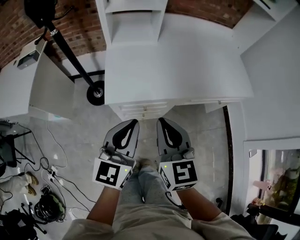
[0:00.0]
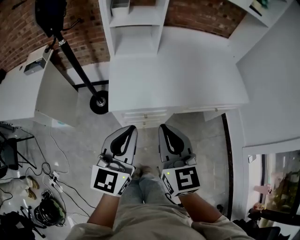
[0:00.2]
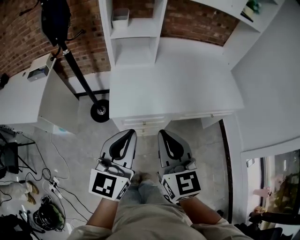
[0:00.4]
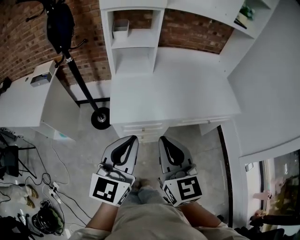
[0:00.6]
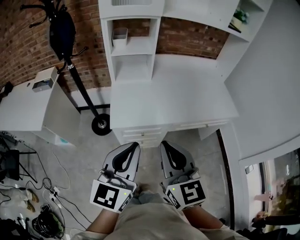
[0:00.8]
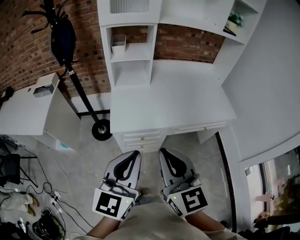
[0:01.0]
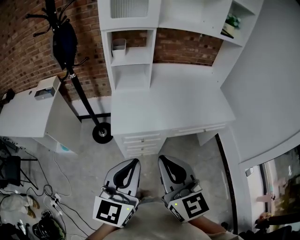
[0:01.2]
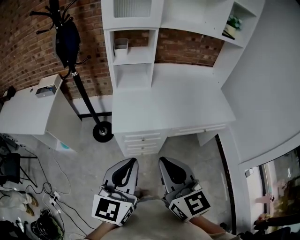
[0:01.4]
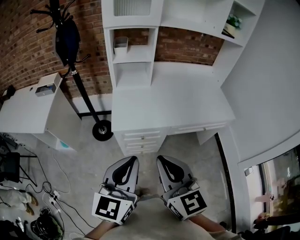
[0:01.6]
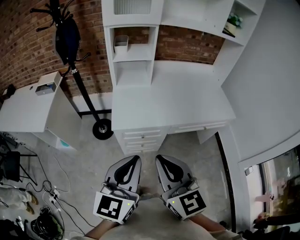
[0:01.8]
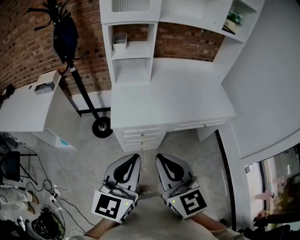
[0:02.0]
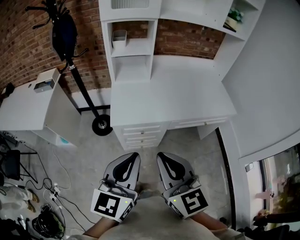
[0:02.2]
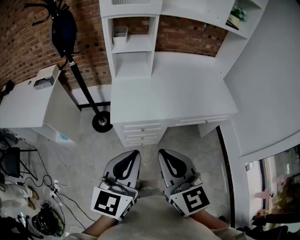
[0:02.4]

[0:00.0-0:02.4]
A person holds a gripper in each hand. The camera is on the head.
0:00.0 to 0:01.2: The two grippers go some 25 cm upward and backward.
0:01.2 to 0:02.4: The grippers make only small movements.

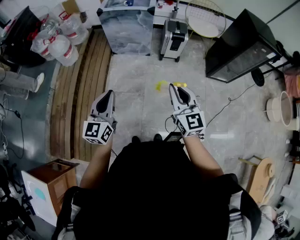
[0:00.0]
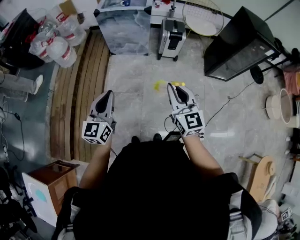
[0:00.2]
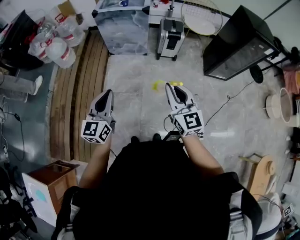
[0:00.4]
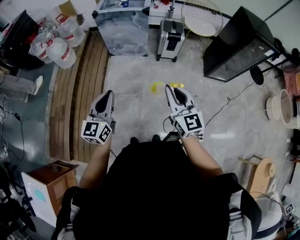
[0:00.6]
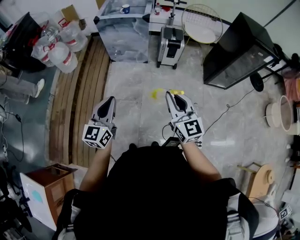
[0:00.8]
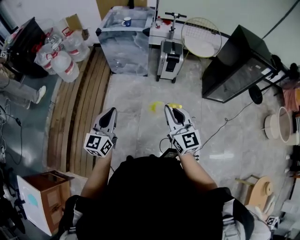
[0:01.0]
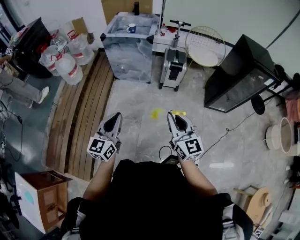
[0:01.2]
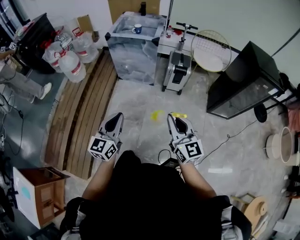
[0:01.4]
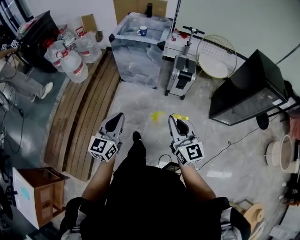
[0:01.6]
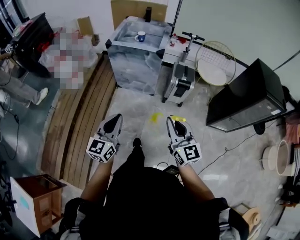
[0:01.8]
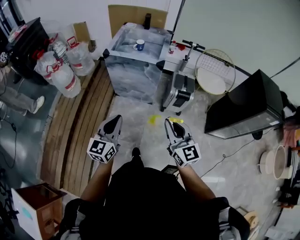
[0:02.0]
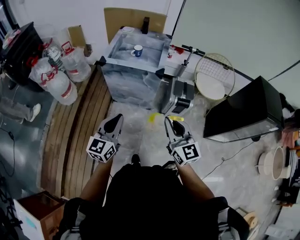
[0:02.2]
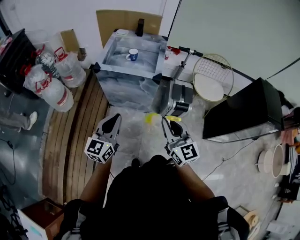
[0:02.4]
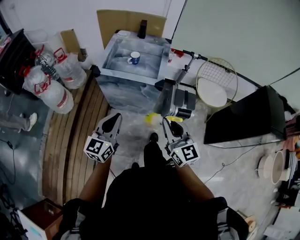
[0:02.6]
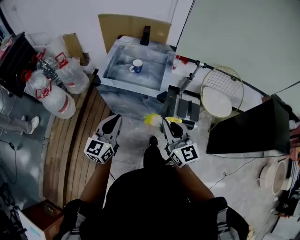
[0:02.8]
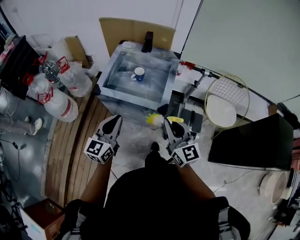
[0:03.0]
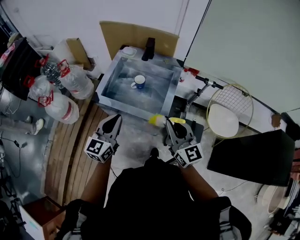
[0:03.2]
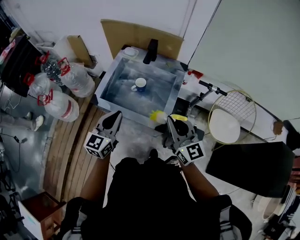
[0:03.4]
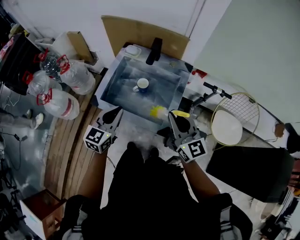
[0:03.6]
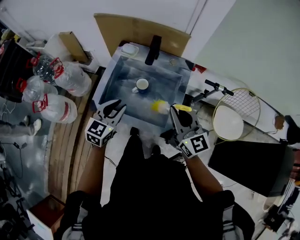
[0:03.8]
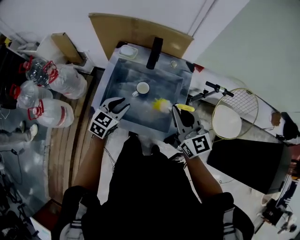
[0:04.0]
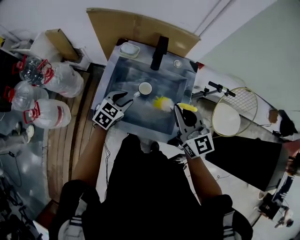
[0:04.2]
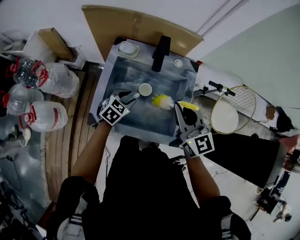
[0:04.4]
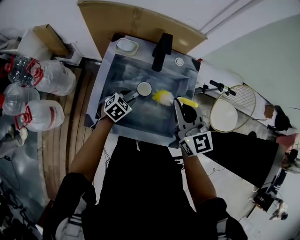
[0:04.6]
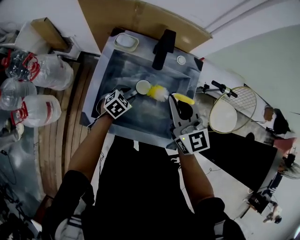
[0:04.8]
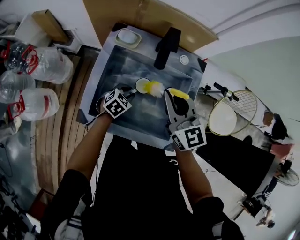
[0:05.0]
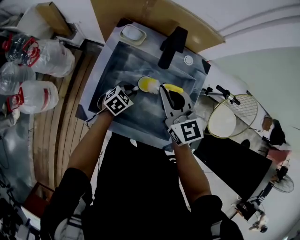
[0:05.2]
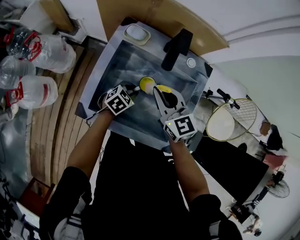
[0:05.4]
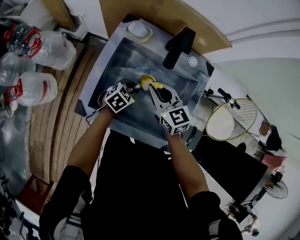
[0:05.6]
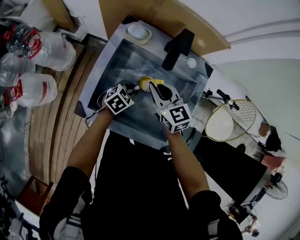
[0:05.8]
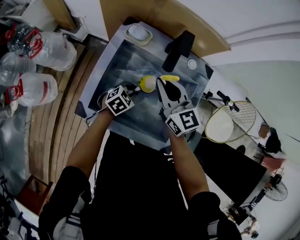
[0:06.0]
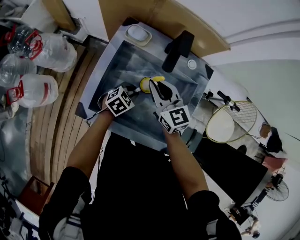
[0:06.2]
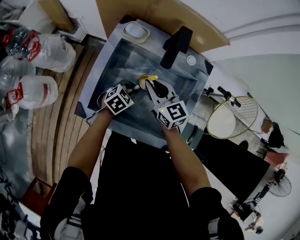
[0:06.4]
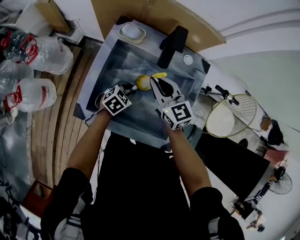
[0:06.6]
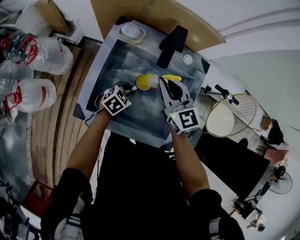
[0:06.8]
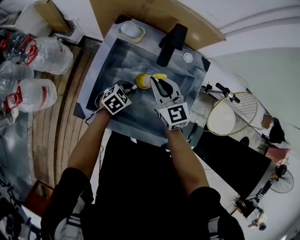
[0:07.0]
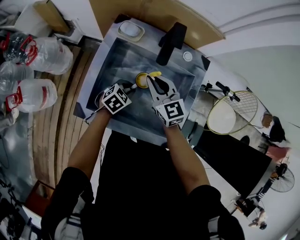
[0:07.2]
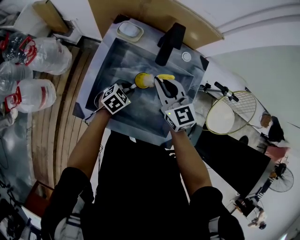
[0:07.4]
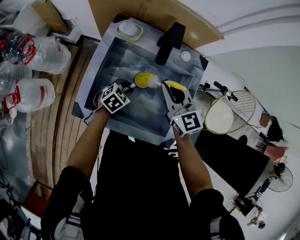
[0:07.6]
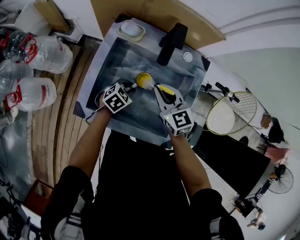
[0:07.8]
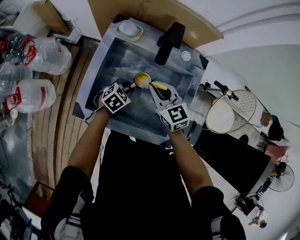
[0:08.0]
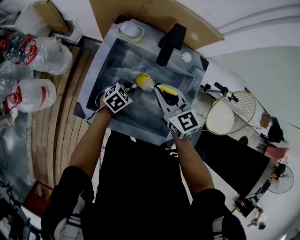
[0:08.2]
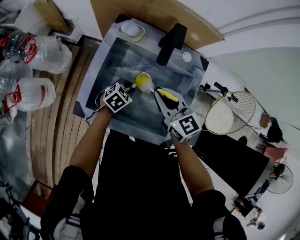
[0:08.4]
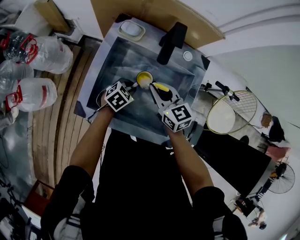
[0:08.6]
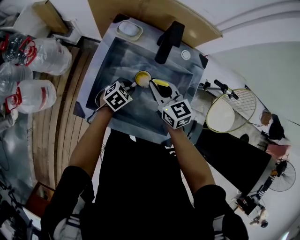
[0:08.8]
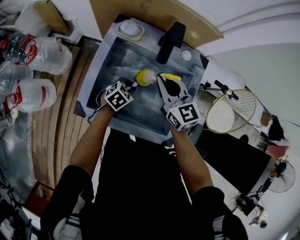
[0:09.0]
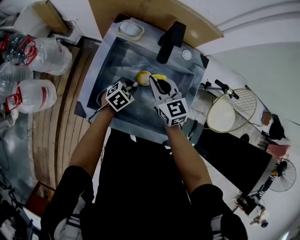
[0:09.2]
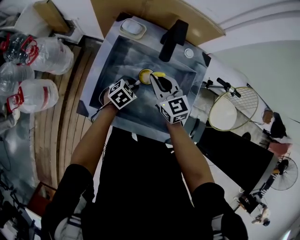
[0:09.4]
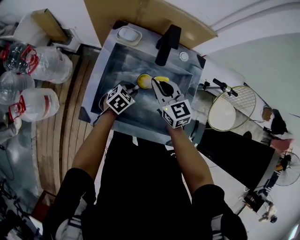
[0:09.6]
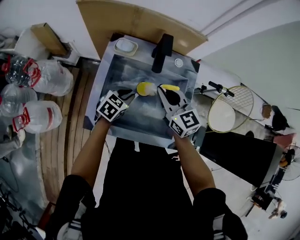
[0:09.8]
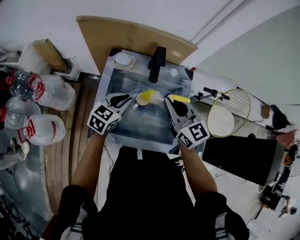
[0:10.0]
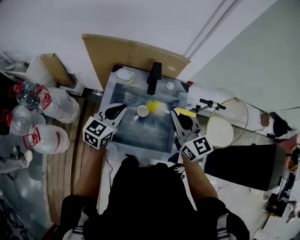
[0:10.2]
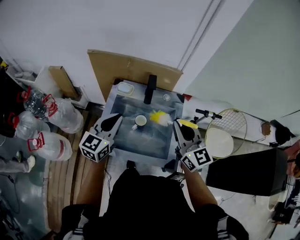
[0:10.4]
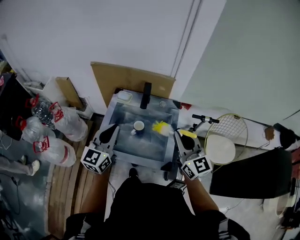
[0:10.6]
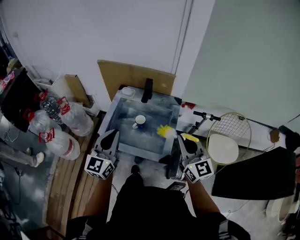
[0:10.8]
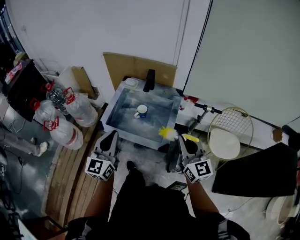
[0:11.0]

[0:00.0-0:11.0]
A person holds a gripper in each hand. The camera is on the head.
0:00.0 to 0:01.6: The right gripper moves forward, roughly 10 cm; the left gripper moves forward and to the right, roughly 15 cm.
0:01.6 to 0:03.2: The pair of grippers is taken forward, roughly 70 cm.
0:03.2 to 0:04.8: The left gripper travels downward and forward by about 40 cm, angles its fingers downward, by some 50 degrees, and opens its fingers. Meanwhile the right gripper is displaced forward and to the left by some 30 cm.
0:04.8 to 0:06.2: The left gripper closes its fingers; the right gripper moves up and down over some 15 cm, changing direction 2 times.
0:06.2 to 0:07.8: The right gripper moves to the right, some 5 cm.
0:07.8 to 0:09.4: The right gripper moves up and down over some 5 cm, changing direction 3 times.
0:09.4 to 0:11.0: The right gripper goes roughly 50 cm backward, upward and to the right, and changes its angle by about 30 degrees. Meanwhile the left gripper shifts approximately 50 cm upward and backward, and angles its fingers upward, by some 60 degrees.

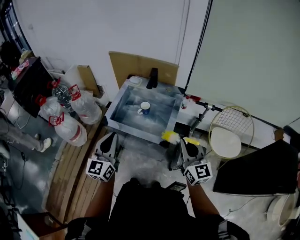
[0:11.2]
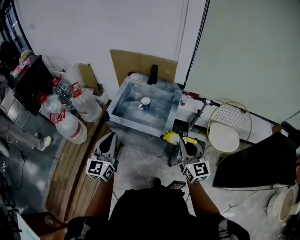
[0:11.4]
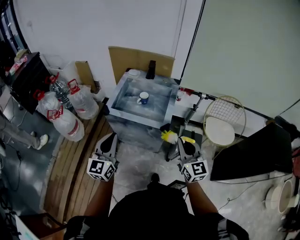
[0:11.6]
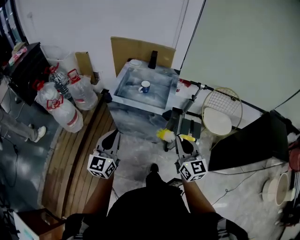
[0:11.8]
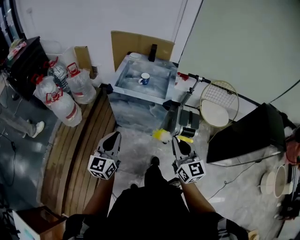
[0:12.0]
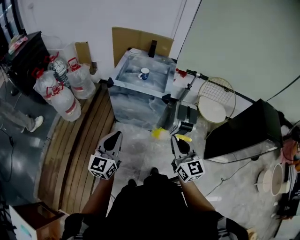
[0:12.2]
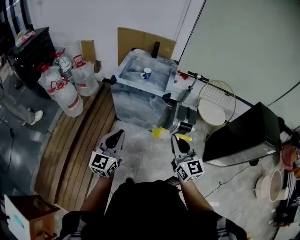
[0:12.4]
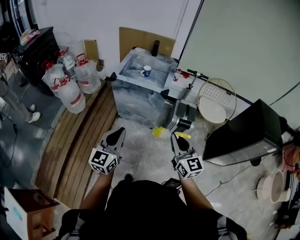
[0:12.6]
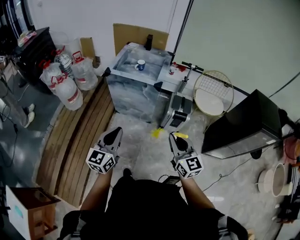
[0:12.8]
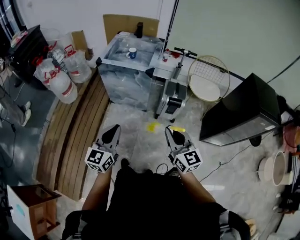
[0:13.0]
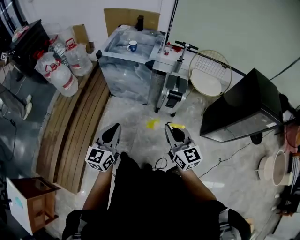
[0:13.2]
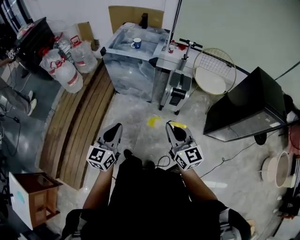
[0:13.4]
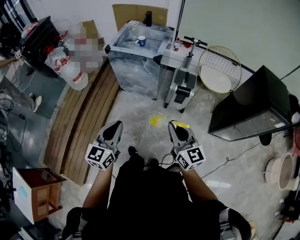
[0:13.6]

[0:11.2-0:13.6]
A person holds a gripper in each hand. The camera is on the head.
0:11.2 to 0:12.4: The two grippers go roughly 35 cm backward.
0:12.4 to 0:13.6: Both grippers move backward and to the right, roughly 20 cm.

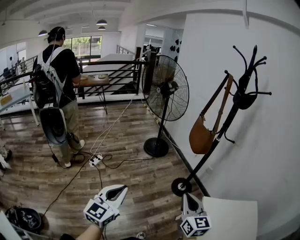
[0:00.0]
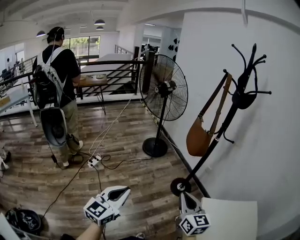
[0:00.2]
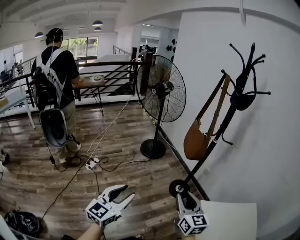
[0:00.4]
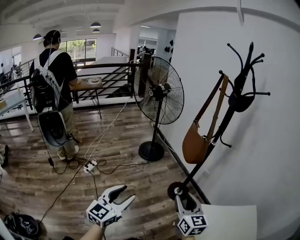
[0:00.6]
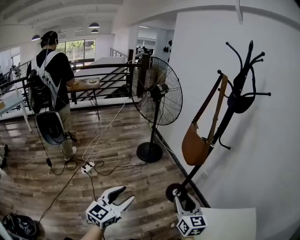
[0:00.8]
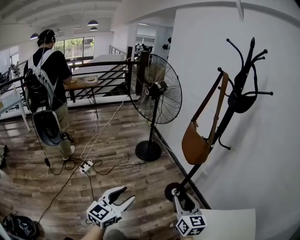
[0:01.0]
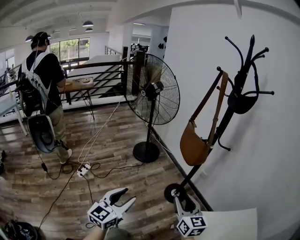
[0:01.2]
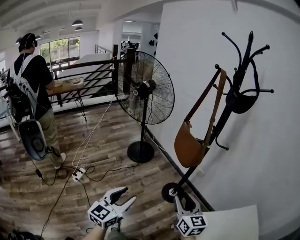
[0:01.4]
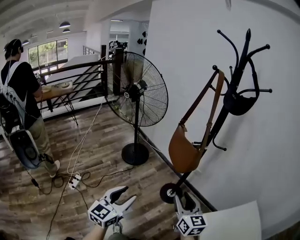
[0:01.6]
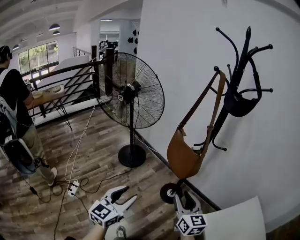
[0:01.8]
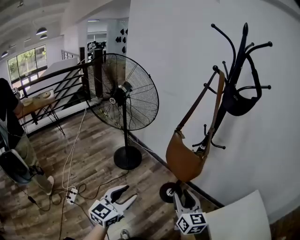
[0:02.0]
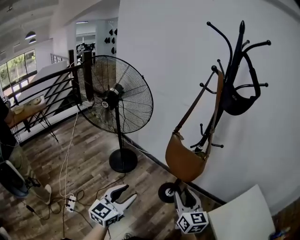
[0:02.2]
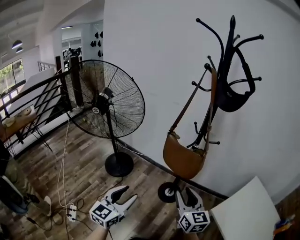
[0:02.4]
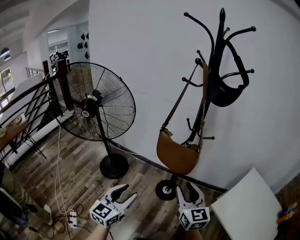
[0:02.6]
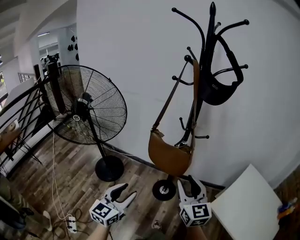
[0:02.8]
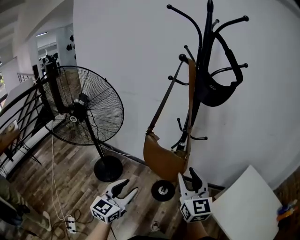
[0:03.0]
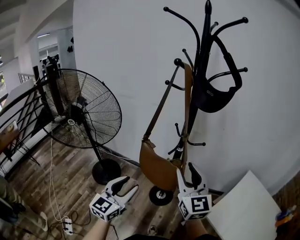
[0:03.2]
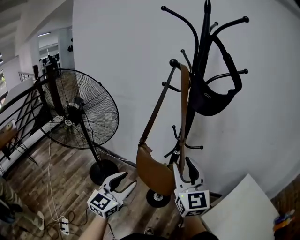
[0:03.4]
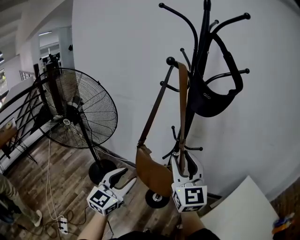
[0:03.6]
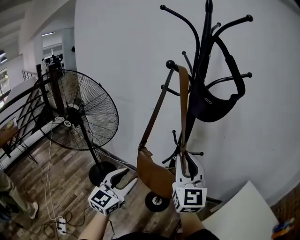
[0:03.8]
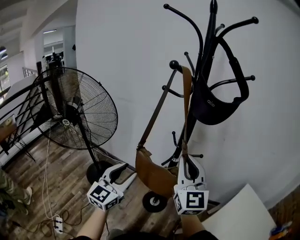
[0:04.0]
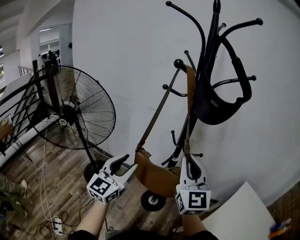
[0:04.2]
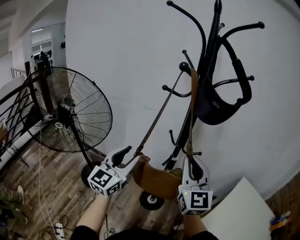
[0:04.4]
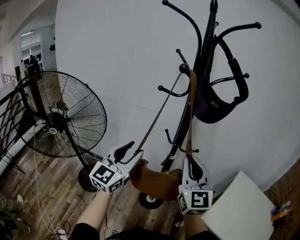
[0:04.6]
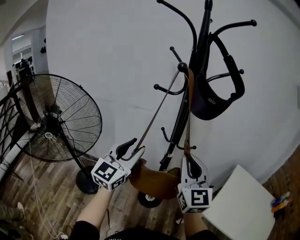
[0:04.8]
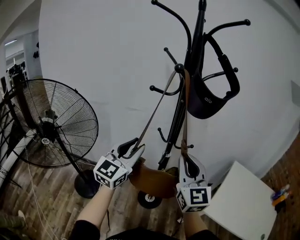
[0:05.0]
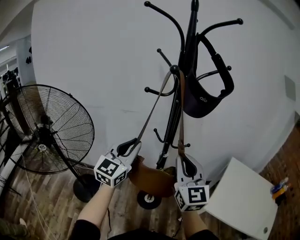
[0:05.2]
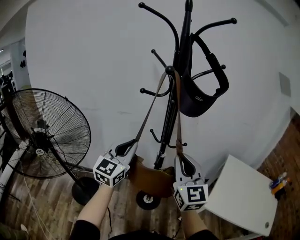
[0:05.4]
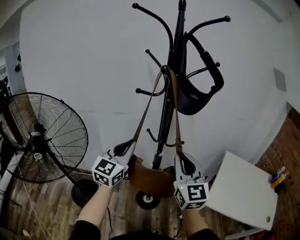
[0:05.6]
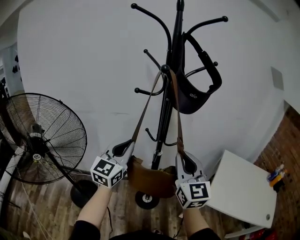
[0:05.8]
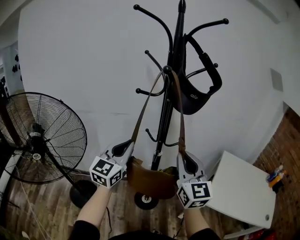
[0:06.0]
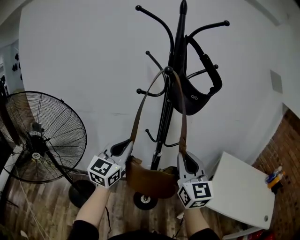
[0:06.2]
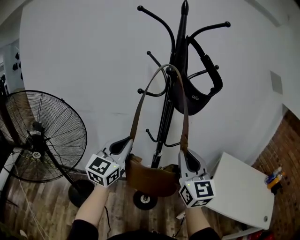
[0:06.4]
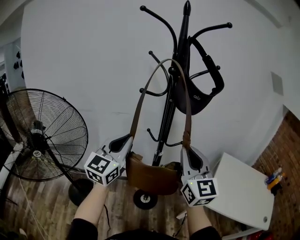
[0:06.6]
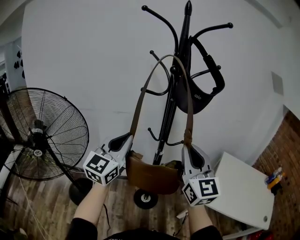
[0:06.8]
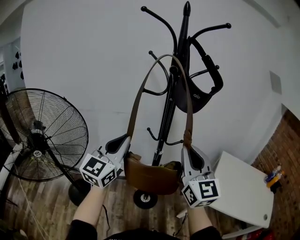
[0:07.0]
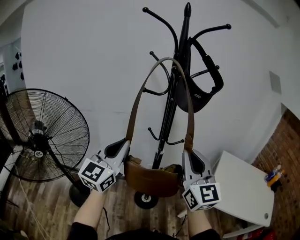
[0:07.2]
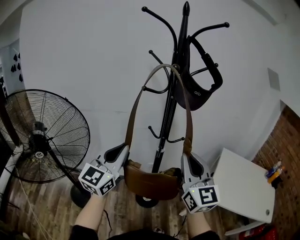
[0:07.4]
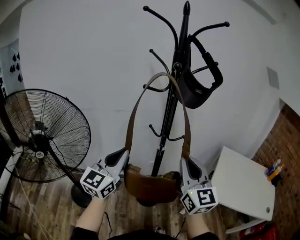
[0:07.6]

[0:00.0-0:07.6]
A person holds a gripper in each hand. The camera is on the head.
0:00.0 to 0:01.6: Both grippers move forward, roughly 25 cm. The right gripper opens its fingers, while the left gripper swivels about 20 degrees, and opens its fingers.
0:01.6 to 0:03.0: The right gripper ends up approximately 20 cm from where it was, and turns by some 30 degrees; the left gripper shifts by about 25 cm, and rotates approximately 30 degrees.
0:03.0 to 0:04.6: The right gripper moves forward and upward, roughly 15 cm, and closes; the left gripper travels forward and upward by some 25 cm.
0:04.6 to 0:06.0: The left gripper closes.
0:06.0 to 0:07.6: Both grippers move backward, roughly 10 cm.
